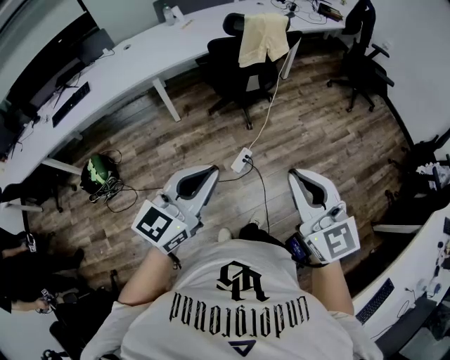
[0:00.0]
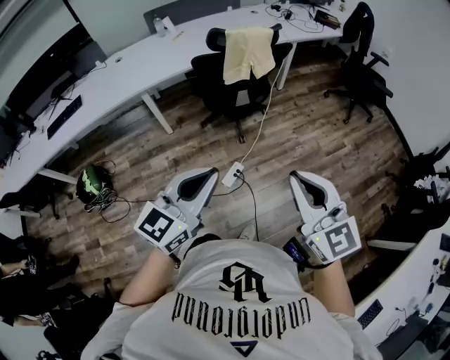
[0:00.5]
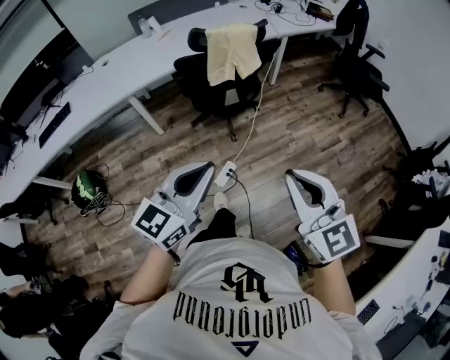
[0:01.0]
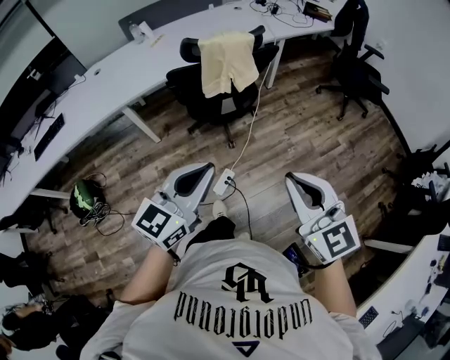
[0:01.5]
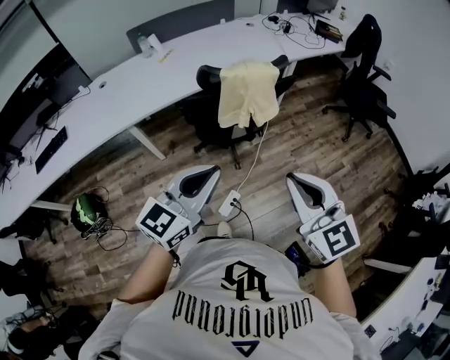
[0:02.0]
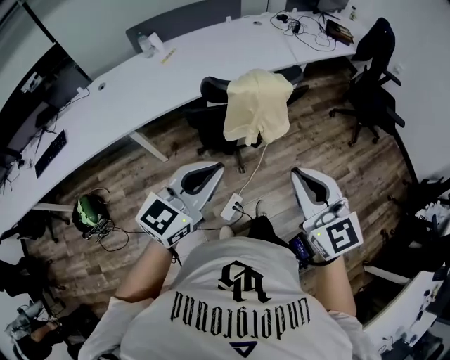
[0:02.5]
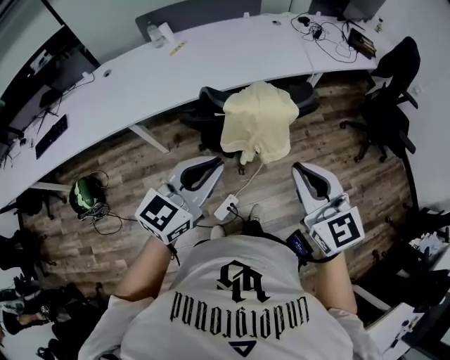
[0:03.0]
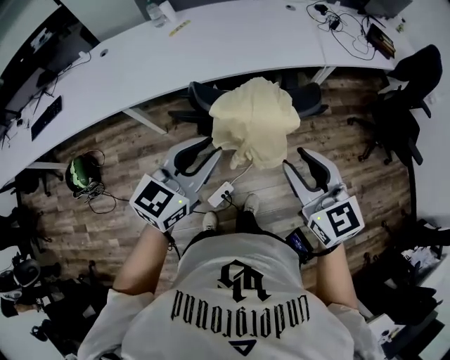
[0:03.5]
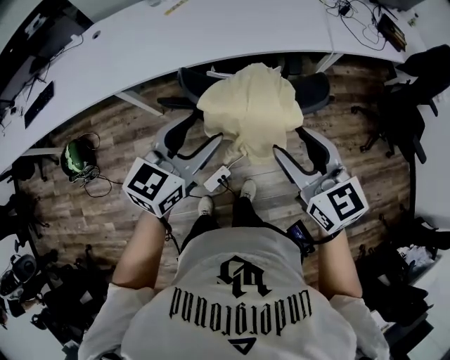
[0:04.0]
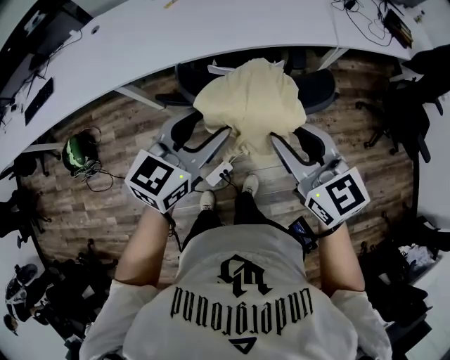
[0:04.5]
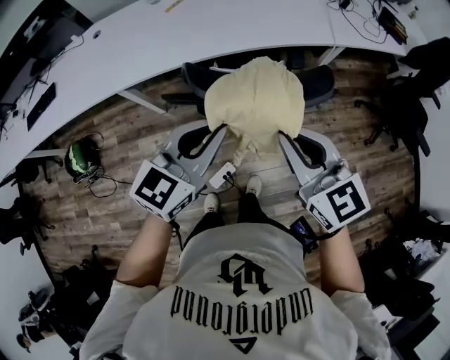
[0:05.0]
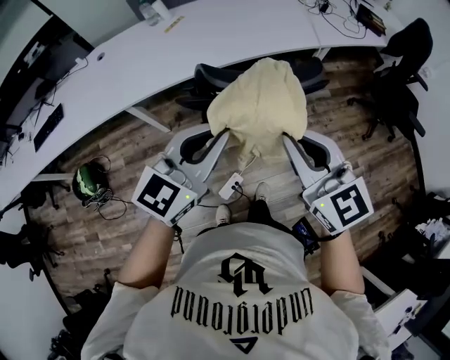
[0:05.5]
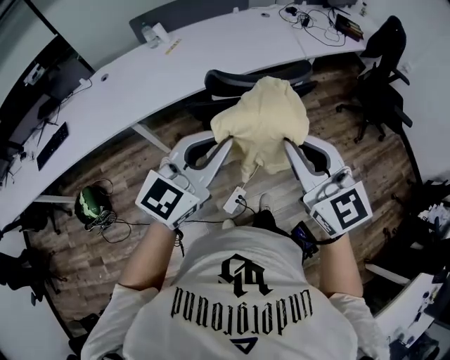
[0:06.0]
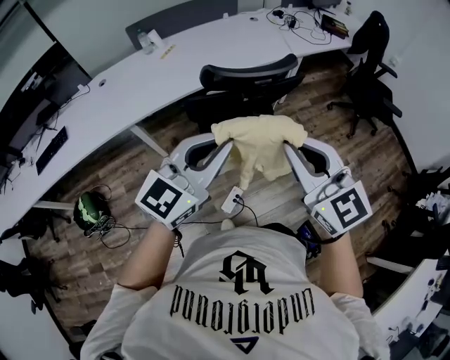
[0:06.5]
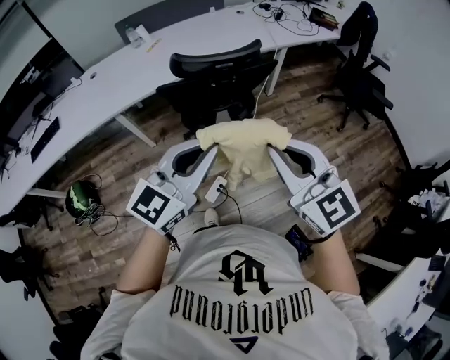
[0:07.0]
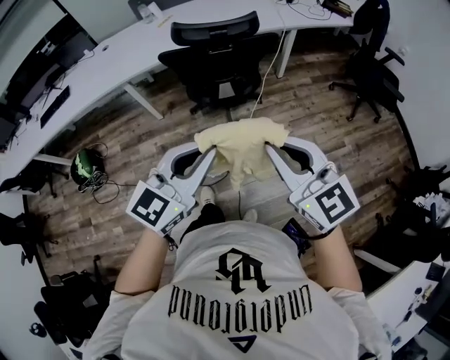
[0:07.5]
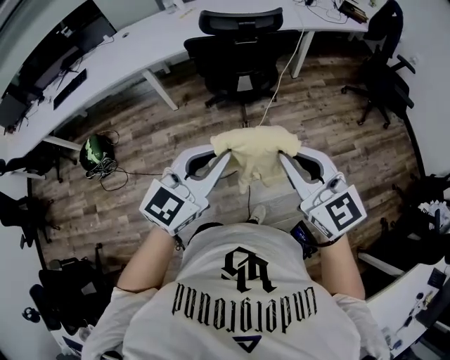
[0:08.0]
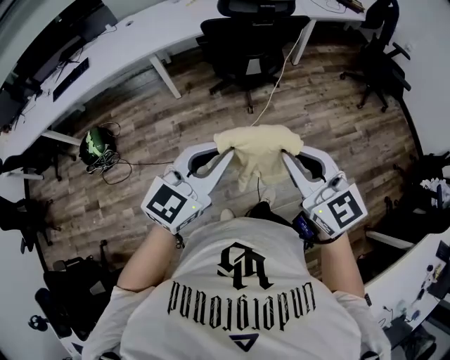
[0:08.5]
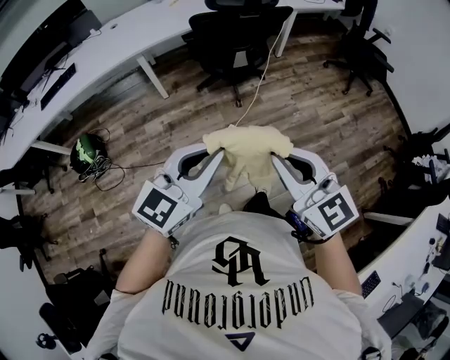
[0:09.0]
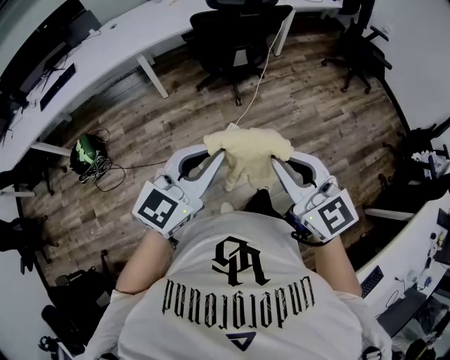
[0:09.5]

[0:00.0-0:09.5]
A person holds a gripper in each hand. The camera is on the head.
0:00.0 to 0:02.0: The two grippers go about 35 cm forward.
0:02.0 to 0:04.0: Both grippers travel together forward, roughly 30 cm. The left gripper swivels approximately 20 degrees, and opens up. Meanwhile the right gripper turns by roughly 20 degrees, and opens.
0:04.0 to 0:05.5: The left gripper goes some 10 cm upward and backward, and closes; the right gripper moves upward, backward and to the left, approximately 10 cm, and closes up.
0:05.5 to 0:07.5: The two grippers go roughly 35 cm backward and to the right.
0:07.5 to 0:09.5: Both grippers move backward and to the left, roughly 30 cm.

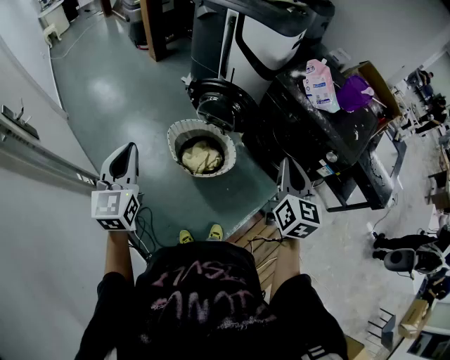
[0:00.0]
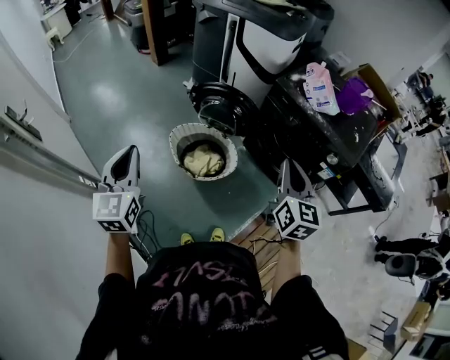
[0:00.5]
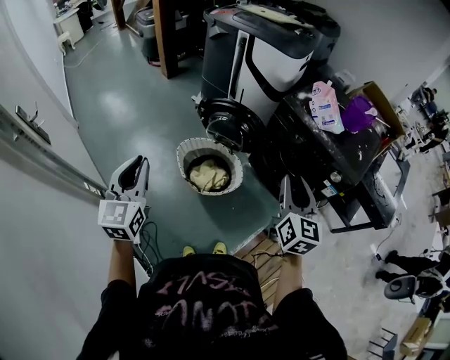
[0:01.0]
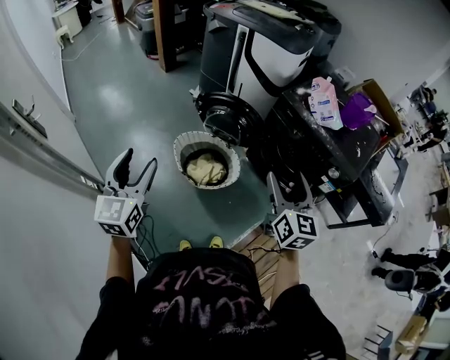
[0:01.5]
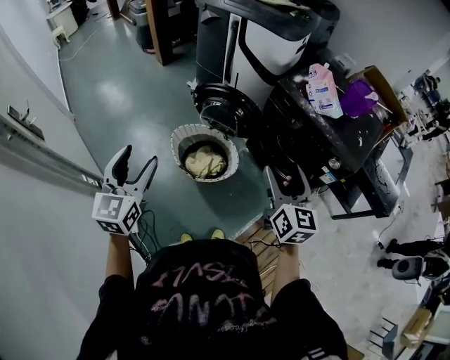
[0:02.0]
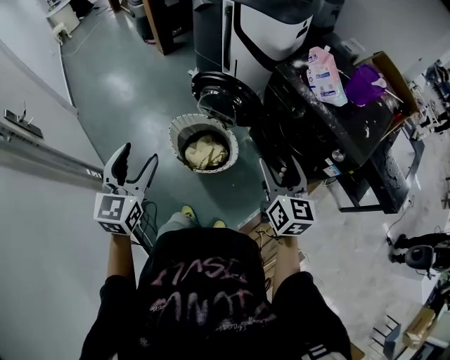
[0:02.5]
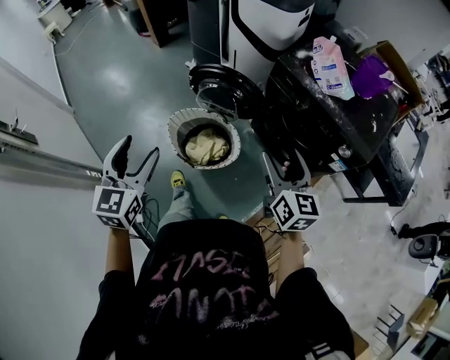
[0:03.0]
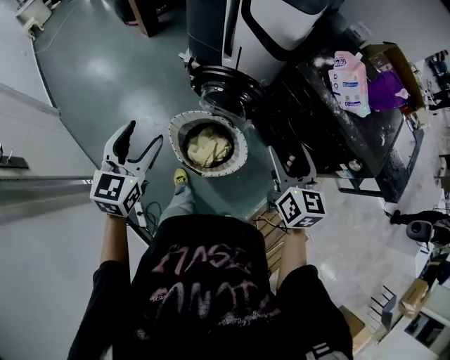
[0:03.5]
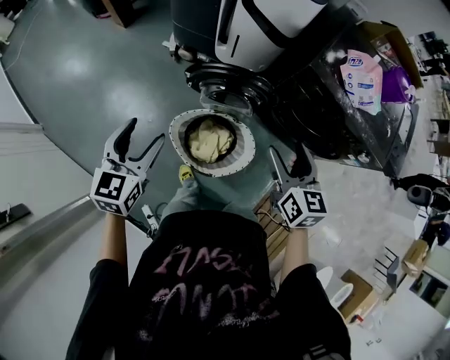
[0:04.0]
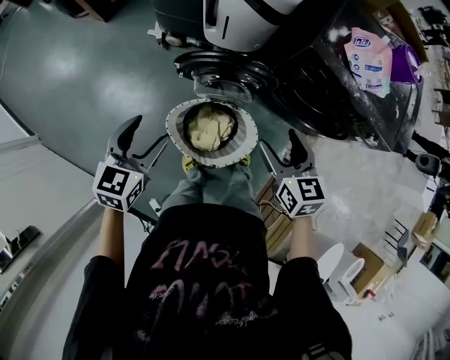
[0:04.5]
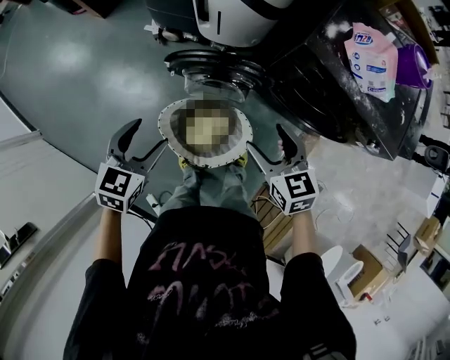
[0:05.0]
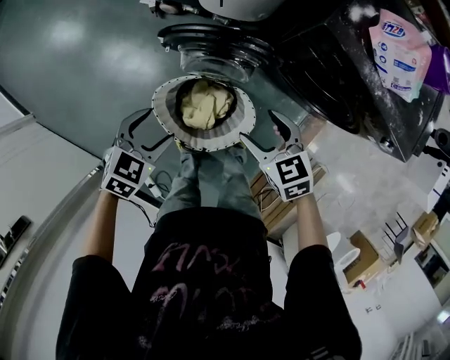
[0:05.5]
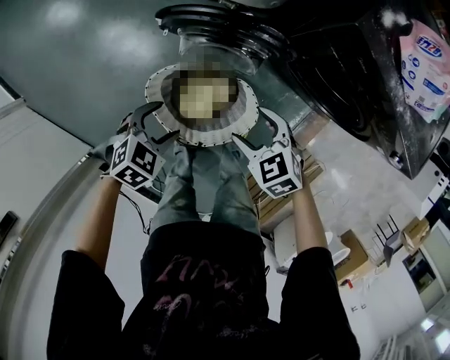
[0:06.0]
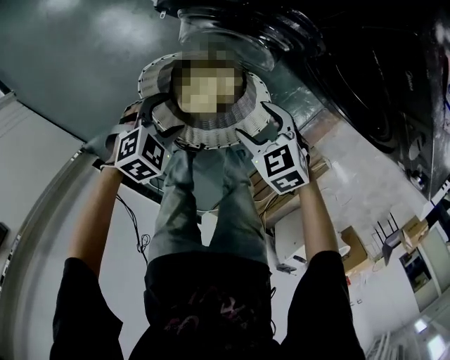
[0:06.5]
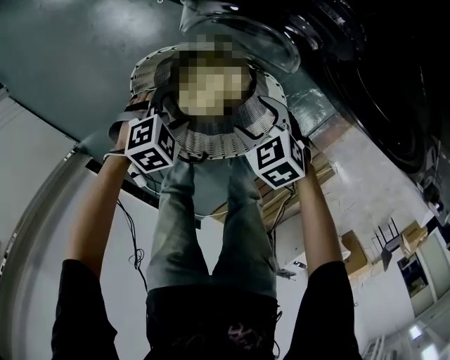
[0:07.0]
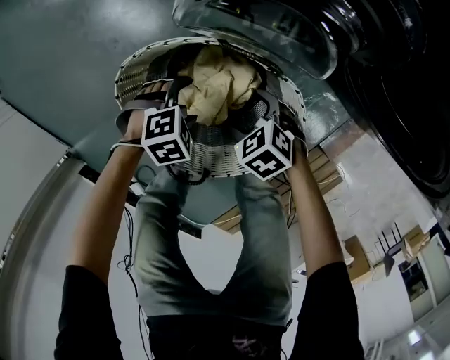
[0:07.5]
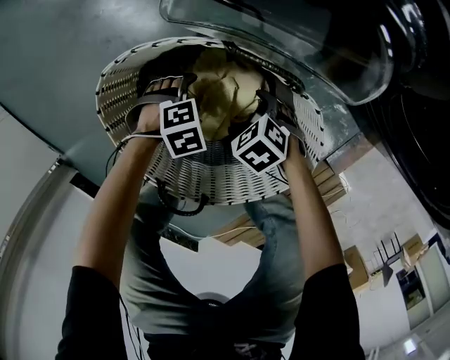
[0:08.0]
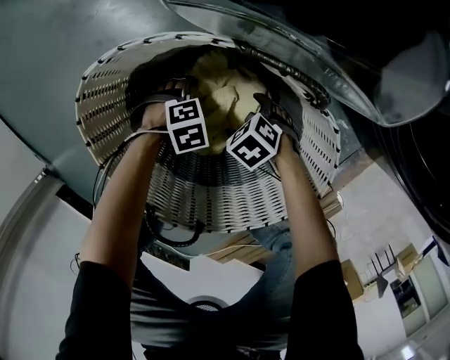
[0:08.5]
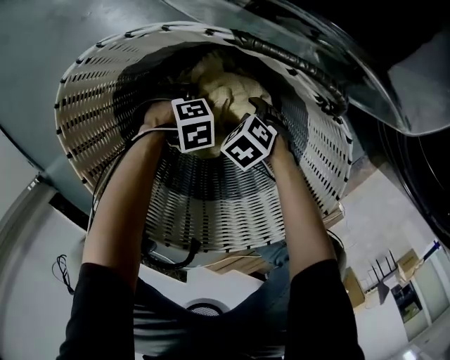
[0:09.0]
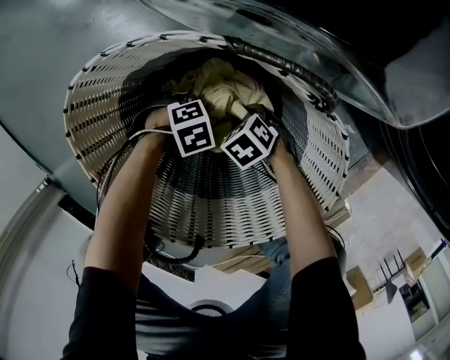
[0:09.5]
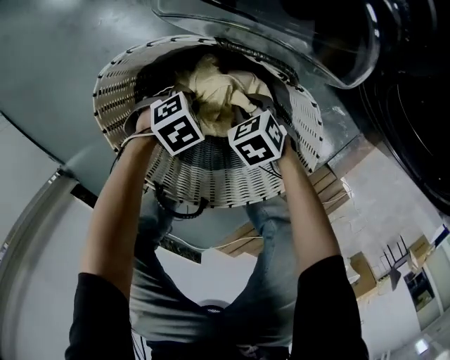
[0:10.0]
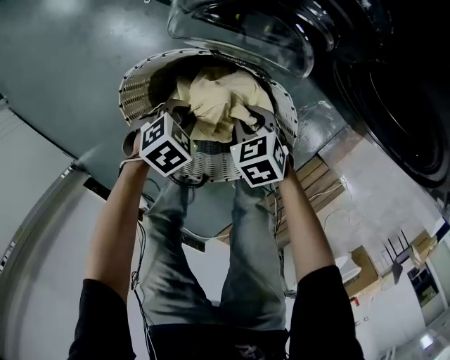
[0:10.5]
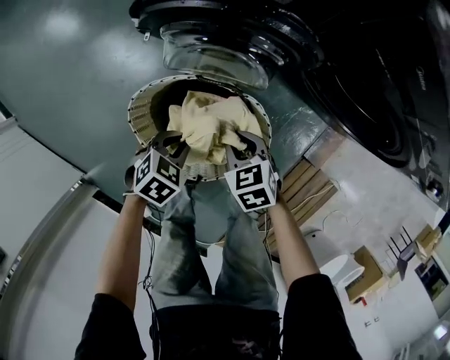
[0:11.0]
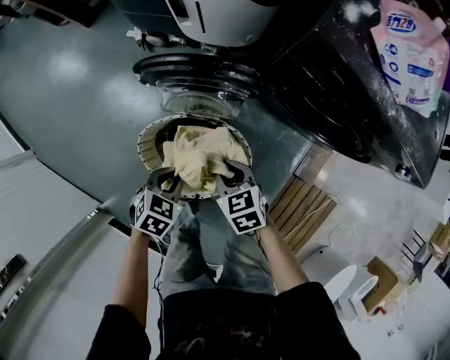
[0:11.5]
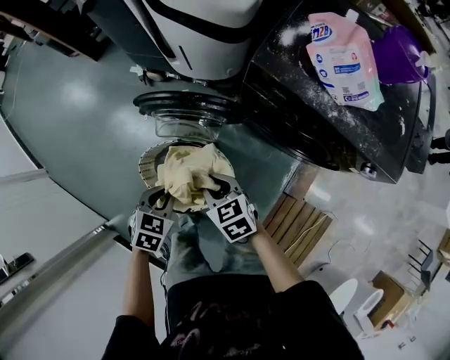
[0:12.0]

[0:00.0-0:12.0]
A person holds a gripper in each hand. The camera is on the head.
0:00.0 to 0:02.0: The right gripper opens up. Meanwhile the left gripper opens.
0:02.0 to 0:04.0: The right gripper moves forward, to the left and downward, approximately 30 cm; the left gripper travels forward by about 30 cm, and turns by roughly 30 degrees.
0:04.0 to 0:06.0: The right gripper travels downward by approximately 25 cm, and swivels some 50 degrees; the left gripper travels downward and to the right by some 30 cm, and tips its fingers downward by about 40 degrees.
0:06.0 to 0:08.0: Both grippers travel together downward, roughly 50 cm. The right gripper changes its angle by approximately 30 degrees; the left gripper turns by some 30 degrees.
0:08.0 to 0:10.0: The right gripper moves about 15 cm downward and comes back, and closes its fingers. The left gripper goes downward and returns, some 15 cm each way, and closes its fingers.
0:10.0 to 0:12.0: Both grippers move upward, about 50 cm. The left gripper changes its angle by roughly 30 degrees. The right gripper swivels some 30 degrees.

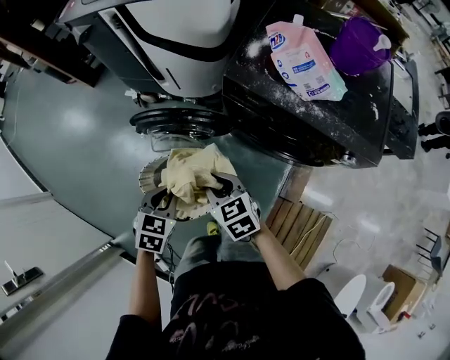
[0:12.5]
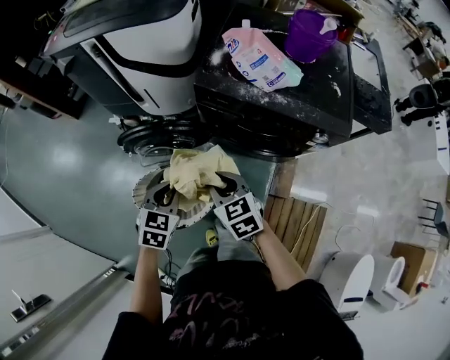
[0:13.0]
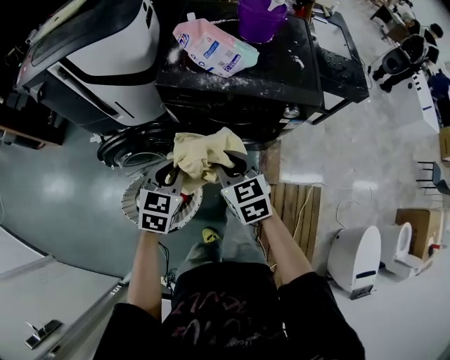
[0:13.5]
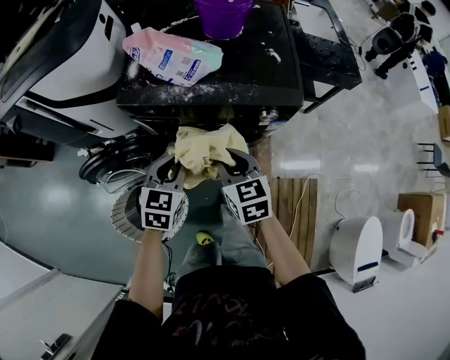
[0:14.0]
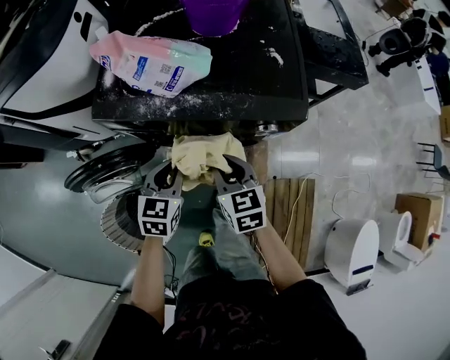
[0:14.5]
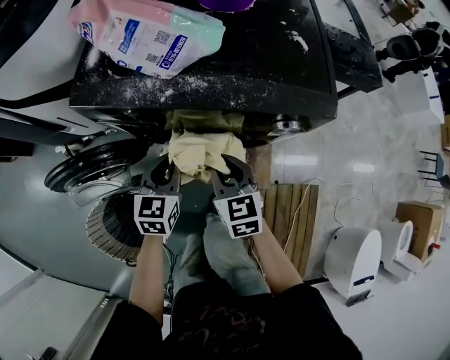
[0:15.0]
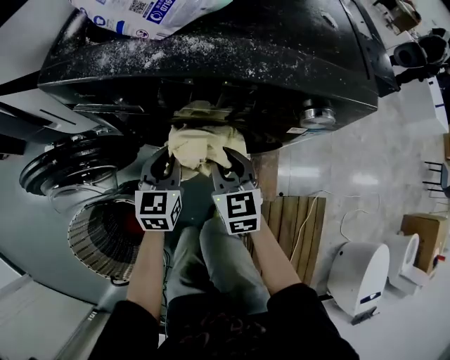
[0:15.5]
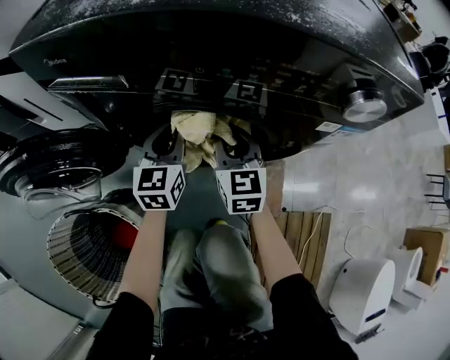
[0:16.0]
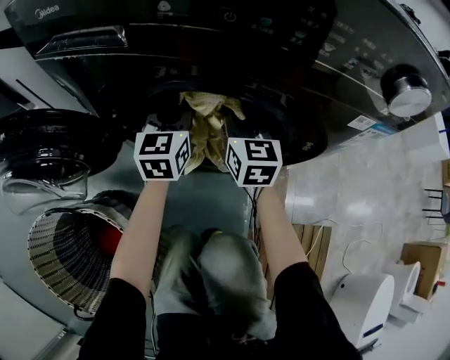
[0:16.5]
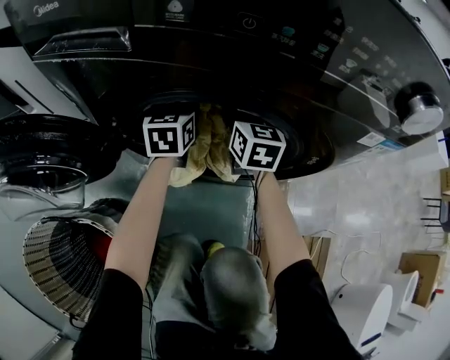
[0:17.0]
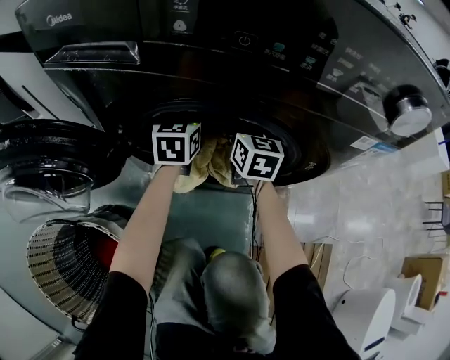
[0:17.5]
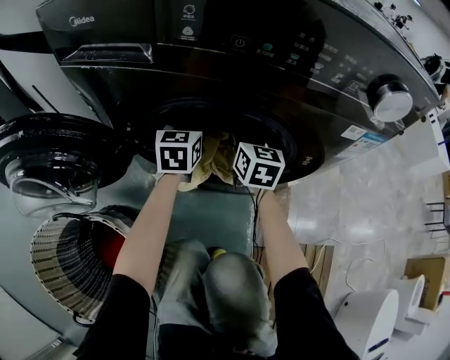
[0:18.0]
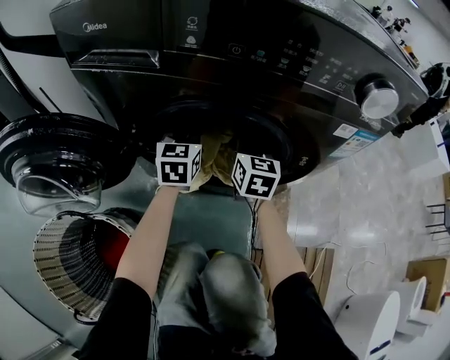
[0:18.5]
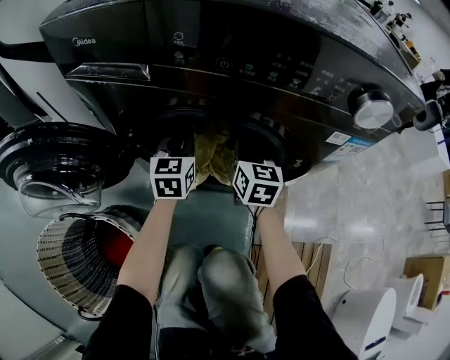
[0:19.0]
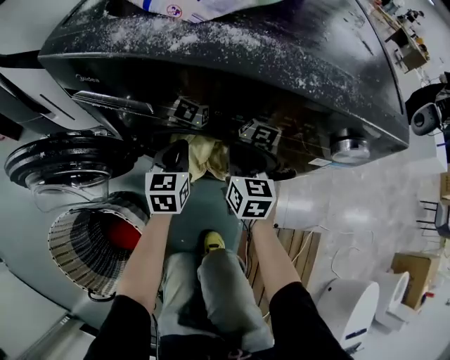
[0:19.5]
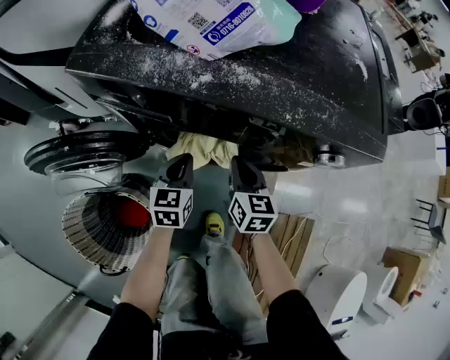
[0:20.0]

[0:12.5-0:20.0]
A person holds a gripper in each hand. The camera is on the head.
0:12.5 to 0:14.5: The right gripper goes upward and returns, some 10 cm each way, and rotates some 40 degrees, while the left gripper travels upward and back again, approximately 10 cm each way, and turns by about 20 degrees.
0:14.5 to 0:16.5: The two grippers go some 35 cm downward and forward. The right gripper swivels some 20 degrees. Meanwhile the left gripper rotates roughly 30 degrees.
0:18.0 to 0:20.0: The grippers both shift backward and upward by roughly 20 cm. The right gripper closes up. The left gripper closes up.
